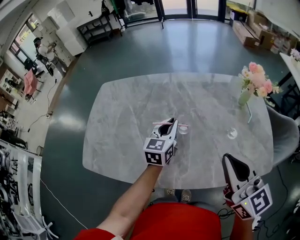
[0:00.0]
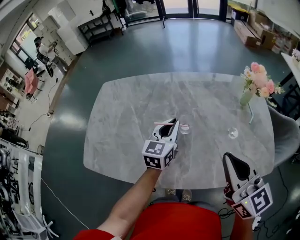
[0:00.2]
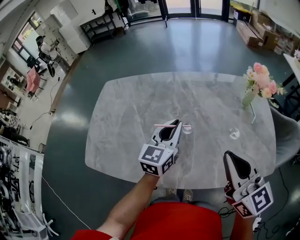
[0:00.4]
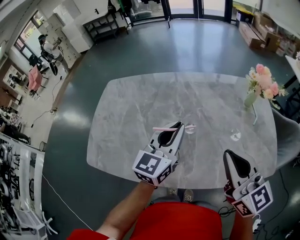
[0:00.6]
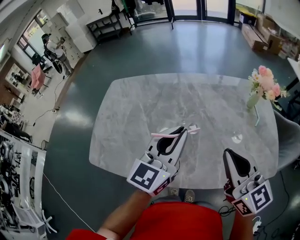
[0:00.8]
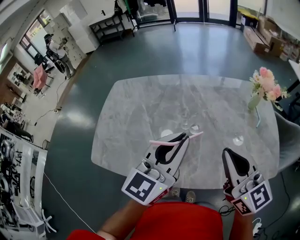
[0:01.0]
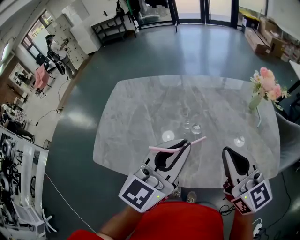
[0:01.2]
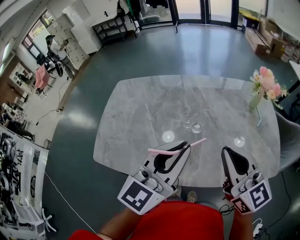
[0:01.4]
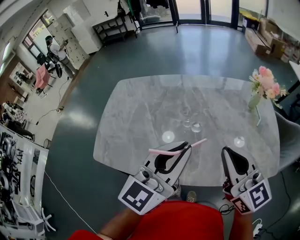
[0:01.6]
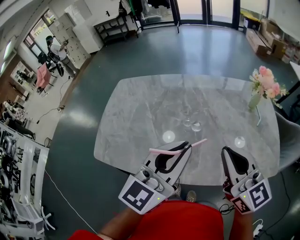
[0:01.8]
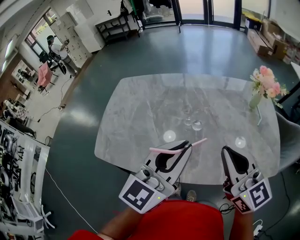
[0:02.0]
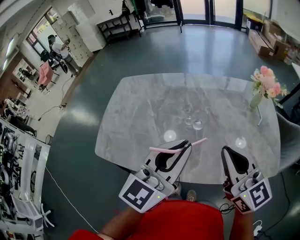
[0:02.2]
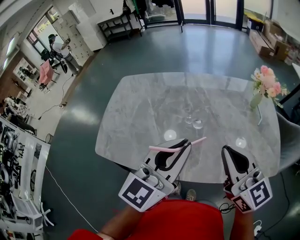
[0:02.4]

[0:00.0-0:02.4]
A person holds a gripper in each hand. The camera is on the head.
0:00.0 to 0:01.2: The left gripper moves upward and backward, about 25 cm, and turns by some 20 degrees.
0:01.2 to 0:02.4: The grippers stay close to where they were, moving slightly.

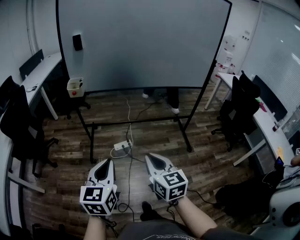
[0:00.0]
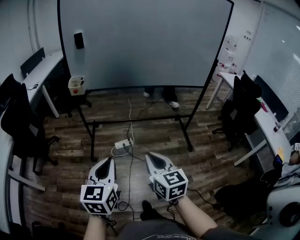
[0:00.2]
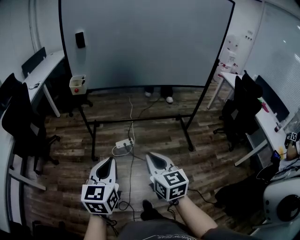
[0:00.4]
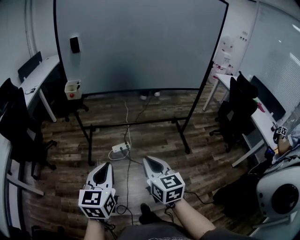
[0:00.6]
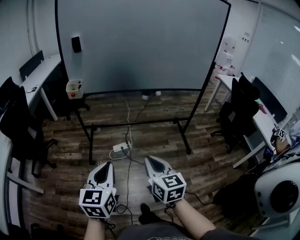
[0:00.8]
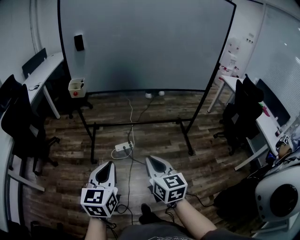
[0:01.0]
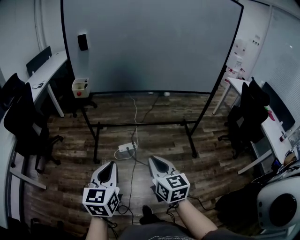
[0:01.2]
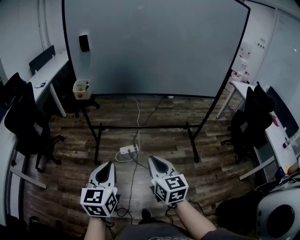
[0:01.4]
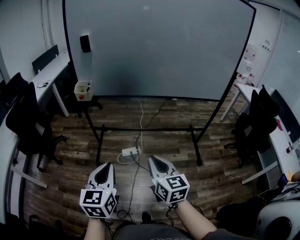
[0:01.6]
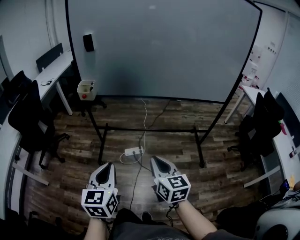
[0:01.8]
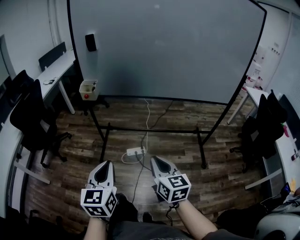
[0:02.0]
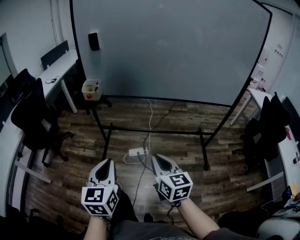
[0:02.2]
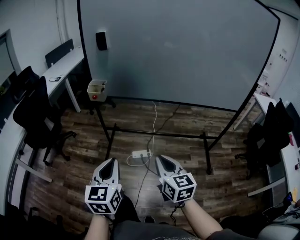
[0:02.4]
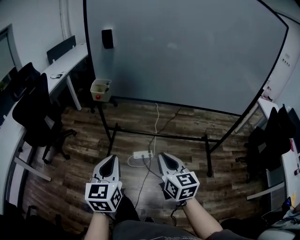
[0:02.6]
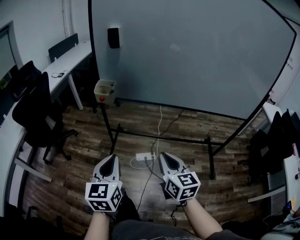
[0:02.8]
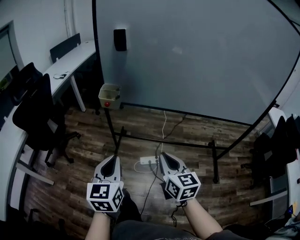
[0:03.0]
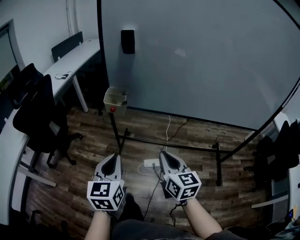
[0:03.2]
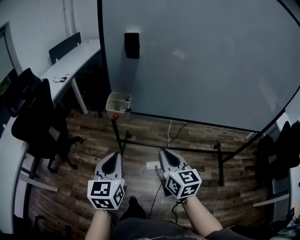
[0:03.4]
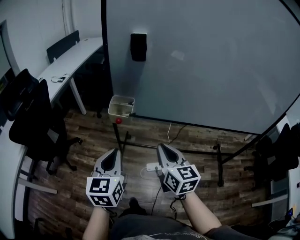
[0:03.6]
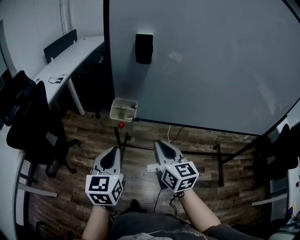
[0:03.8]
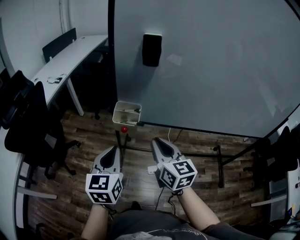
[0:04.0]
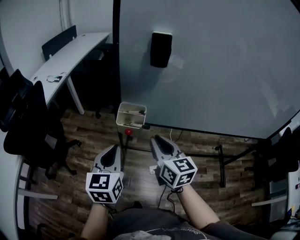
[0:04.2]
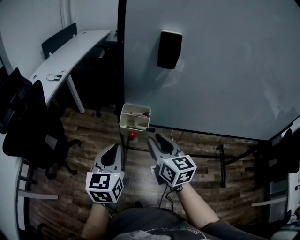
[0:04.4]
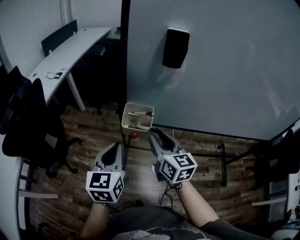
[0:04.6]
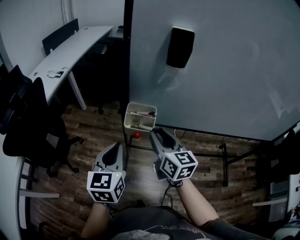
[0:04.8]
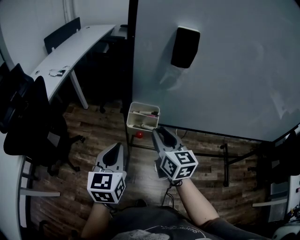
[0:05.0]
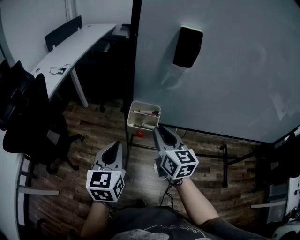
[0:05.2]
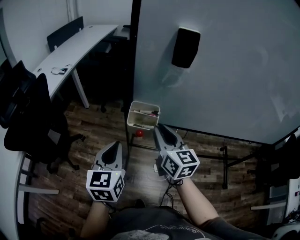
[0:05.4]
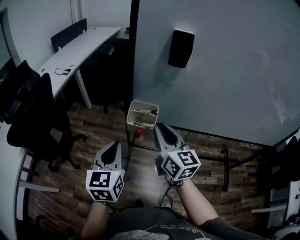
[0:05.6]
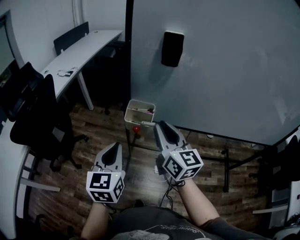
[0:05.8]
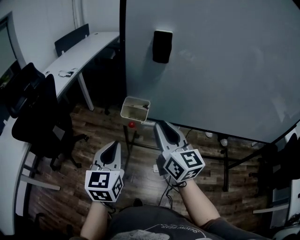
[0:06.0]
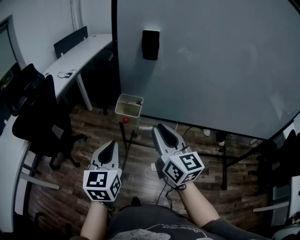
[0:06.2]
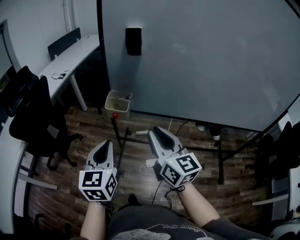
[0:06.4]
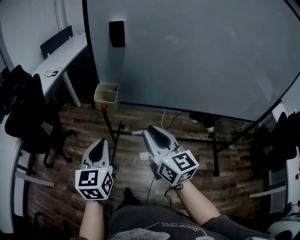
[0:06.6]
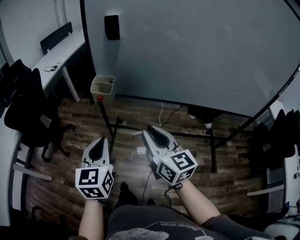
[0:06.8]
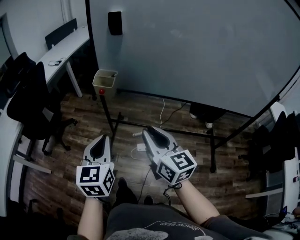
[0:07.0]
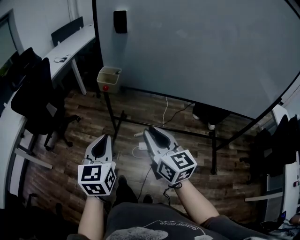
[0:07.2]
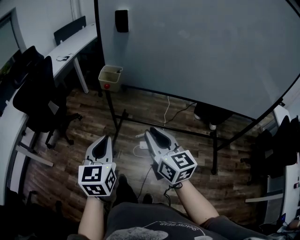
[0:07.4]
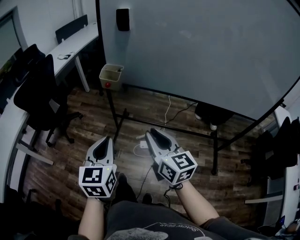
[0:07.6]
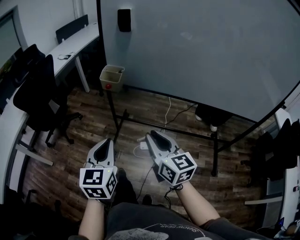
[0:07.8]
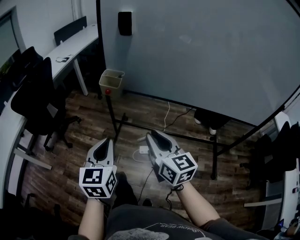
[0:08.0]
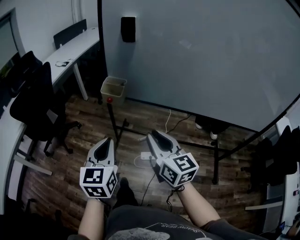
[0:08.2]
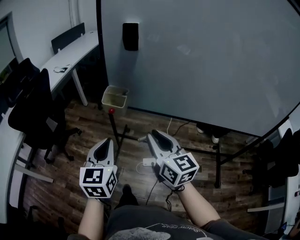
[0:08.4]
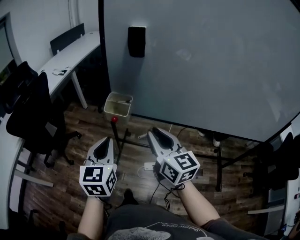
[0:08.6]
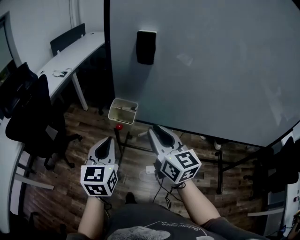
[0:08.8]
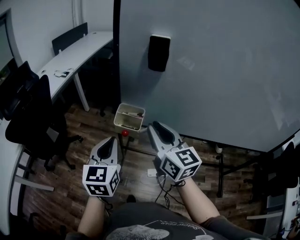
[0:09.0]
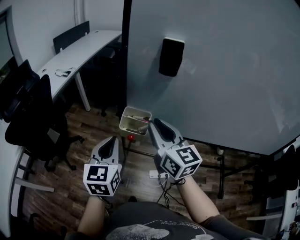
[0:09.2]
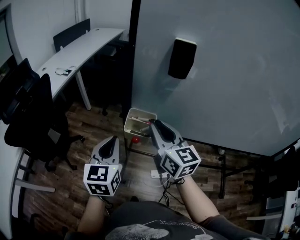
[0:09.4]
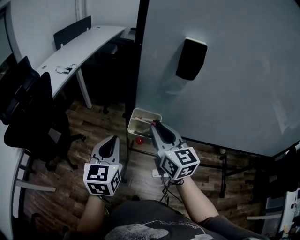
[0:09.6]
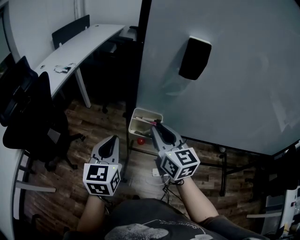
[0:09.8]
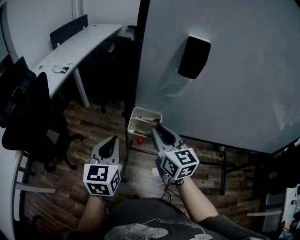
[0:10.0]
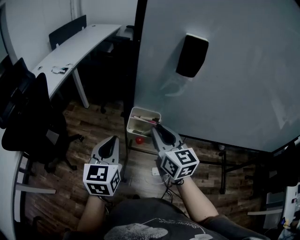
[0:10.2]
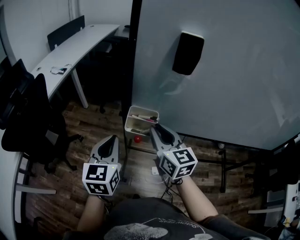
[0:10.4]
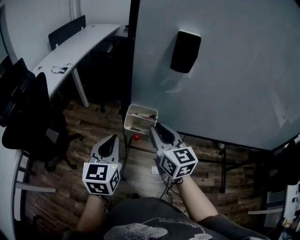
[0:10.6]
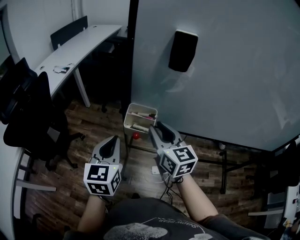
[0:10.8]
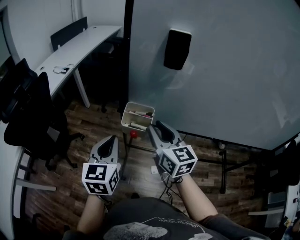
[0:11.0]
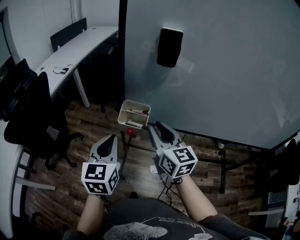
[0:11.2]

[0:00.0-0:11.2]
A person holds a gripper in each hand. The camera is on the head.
0:00.0 to 0:01.6: Both grippers move forward, roughly 10 cm.
0:01.6 to 0:03.2: Both grippers travel together forward and to the left, some 30 cm.
0:03.2 to 0:04.8: The grippers both shift forward and to the left by about 30 cm. The right gripper opens up.
0:04.8 to 0:06.4: The right gripper goes about 20 cm backward, upward and to the right, while the left gripper shifts approximately 15 cm backward and to the right.
0:06.4 to 0:08.0: The left gripper shifts approximately 10 cm backward; the right gripper moves backward and downward, roughly 10 cm.
0:08.0 to 0:09.6: Both grippers travel together forward, roughly 30 cm.
0:09.6 to 0:11.2: The left gripper changes place by about 5 cm. Meanwhile the right gripper changes place by some 5 cm.

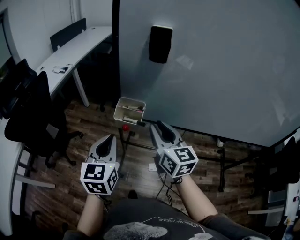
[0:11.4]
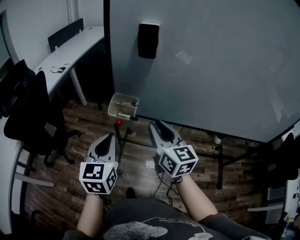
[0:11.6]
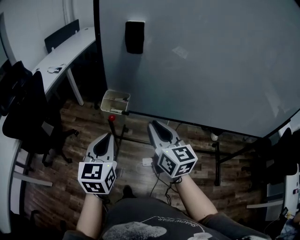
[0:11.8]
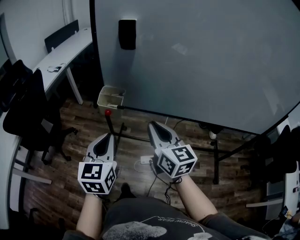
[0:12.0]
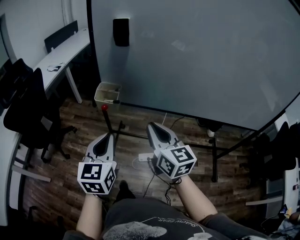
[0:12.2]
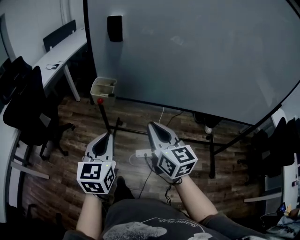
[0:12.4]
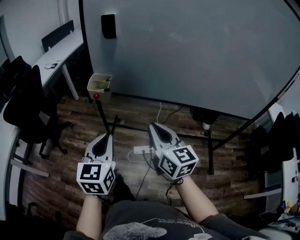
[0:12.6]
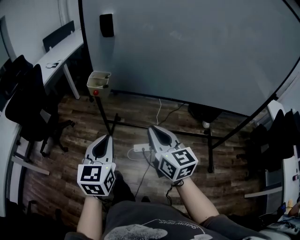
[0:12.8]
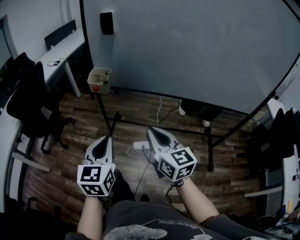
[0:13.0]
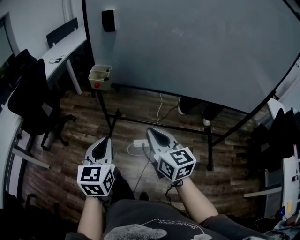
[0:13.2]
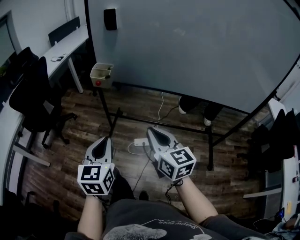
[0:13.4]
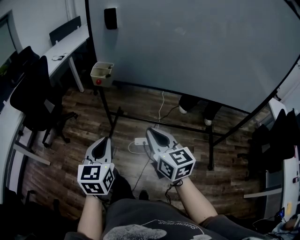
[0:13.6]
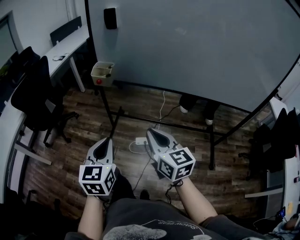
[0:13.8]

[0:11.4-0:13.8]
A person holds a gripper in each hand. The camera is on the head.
0:11.4 to 0:12.6: The grippers both shift backward and to the right by about 25 cm.
0:12.6 to 0:13.8: The two grippers go approximately 10 cm backward.

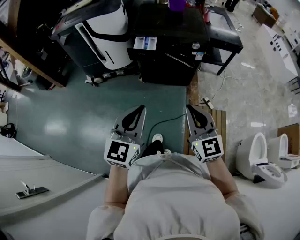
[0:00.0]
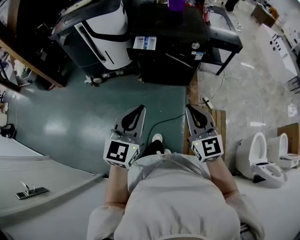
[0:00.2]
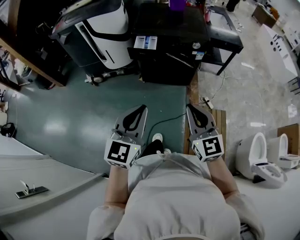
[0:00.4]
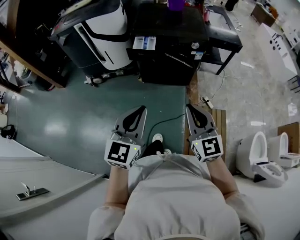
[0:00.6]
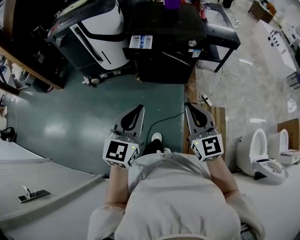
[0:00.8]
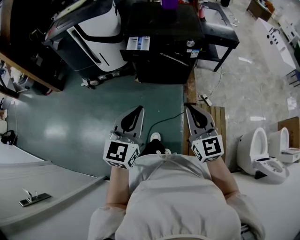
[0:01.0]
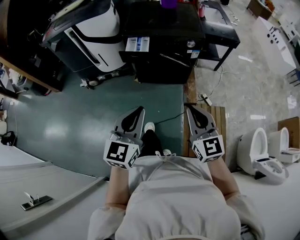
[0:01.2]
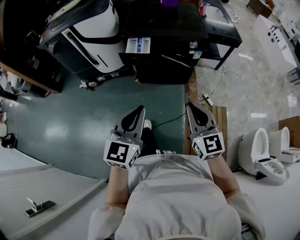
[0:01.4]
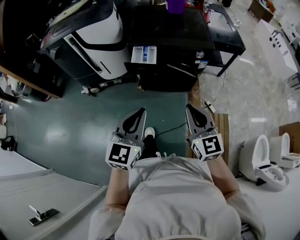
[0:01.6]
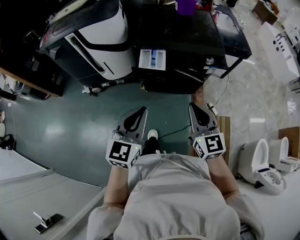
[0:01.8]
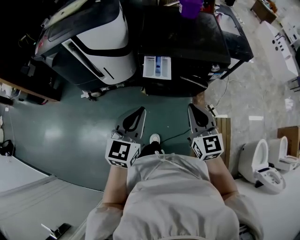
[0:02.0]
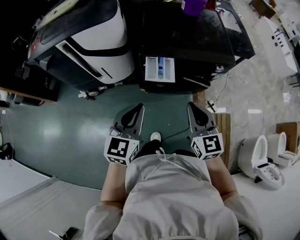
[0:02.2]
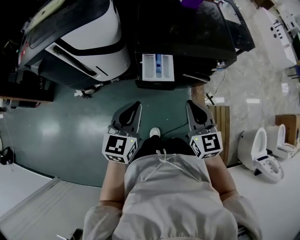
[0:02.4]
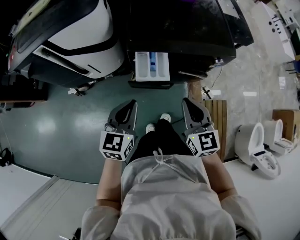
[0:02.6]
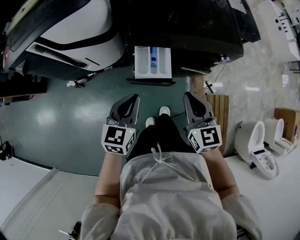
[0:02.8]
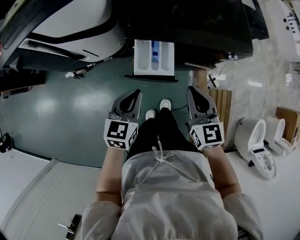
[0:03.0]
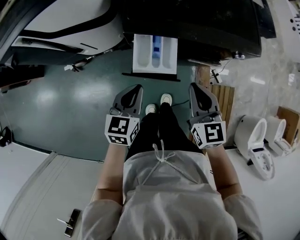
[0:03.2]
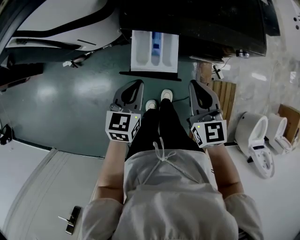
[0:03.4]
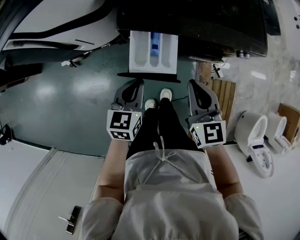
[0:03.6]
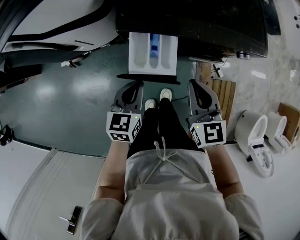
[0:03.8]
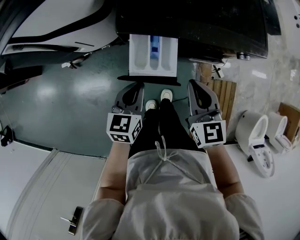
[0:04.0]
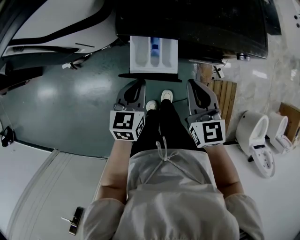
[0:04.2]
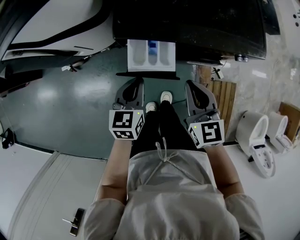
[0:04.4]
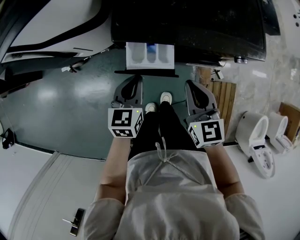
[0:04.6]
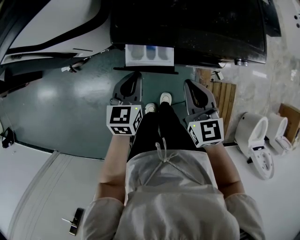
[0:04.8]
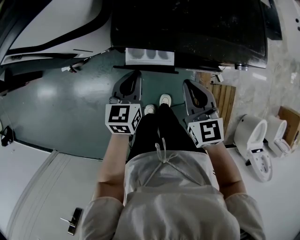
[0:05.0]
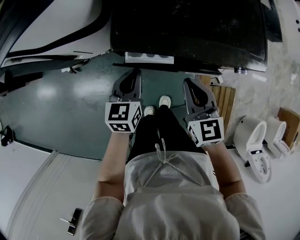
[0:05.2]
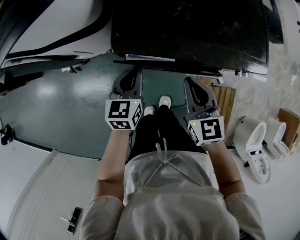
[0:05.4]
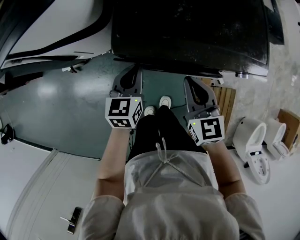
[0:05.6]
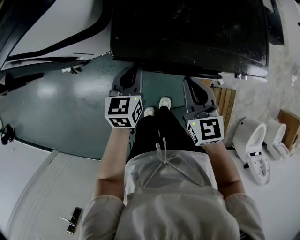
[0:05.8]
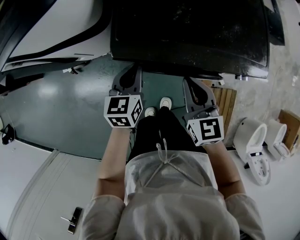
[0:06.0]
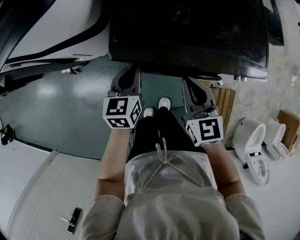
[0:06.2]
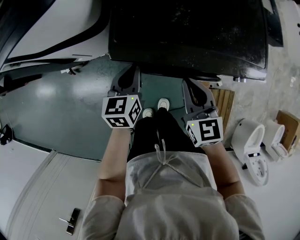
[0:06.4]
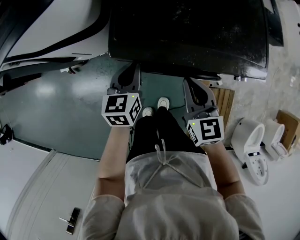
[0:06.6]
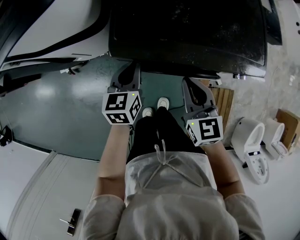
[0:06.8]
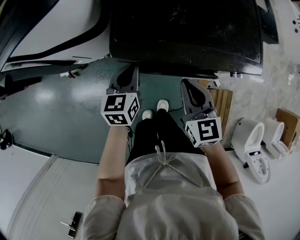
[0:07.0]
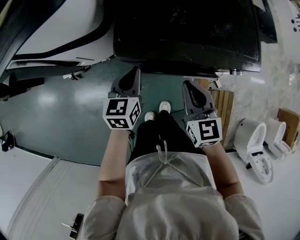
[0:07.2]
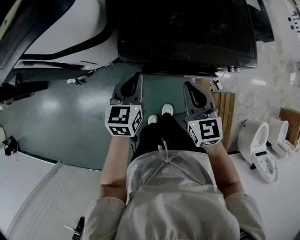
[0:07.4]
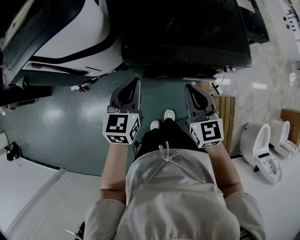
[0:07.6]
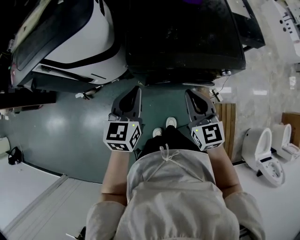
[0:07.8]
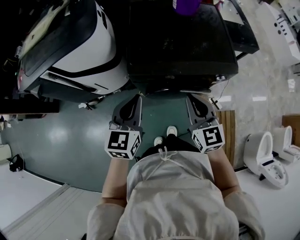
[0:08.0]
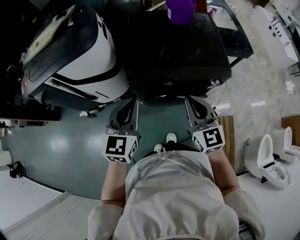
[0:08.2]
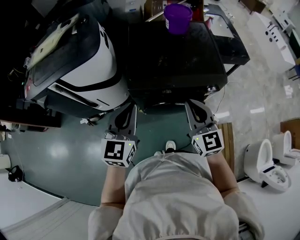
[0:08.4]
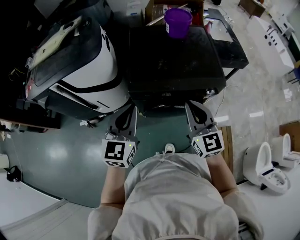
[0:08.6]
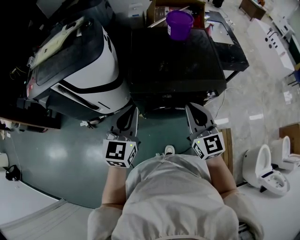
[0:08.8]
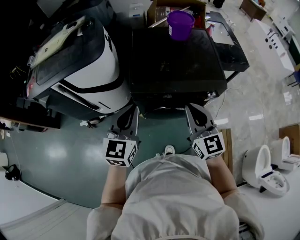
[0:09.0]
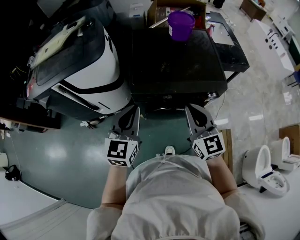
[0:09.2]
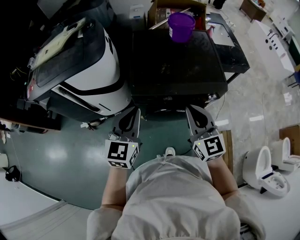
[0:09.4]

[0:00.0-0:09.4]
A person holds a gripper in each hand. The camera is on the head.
0:00.0 to 0:01.6: The grippers both shift forward by roughly 15 cm.
0:01.6 to 0:03.2: Both grippers travel together forward and downward, roughly 35 cm. The left gripper rotates about 30 degrees.
0:03.2 to 0:04.8: The left gripper heads forward, covering approximately 10 cm. Meanwhile the right gripper is displaced forward by about 5 cm.
0:04.8 to 0:06.2: The two grippers go about 5 cm forward.
0:06.2 to 0:07.8: Both grippers travel together upward and backward, roughly 15 cm.
0:07.8 to 0:09.4: The grippers both shift upward by some 15 cm.
